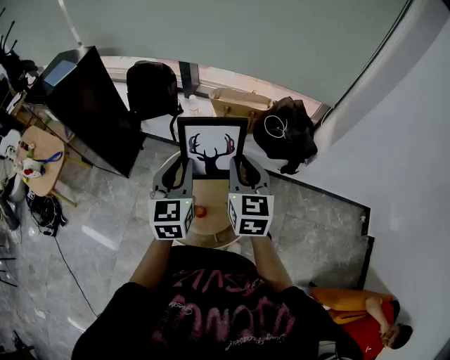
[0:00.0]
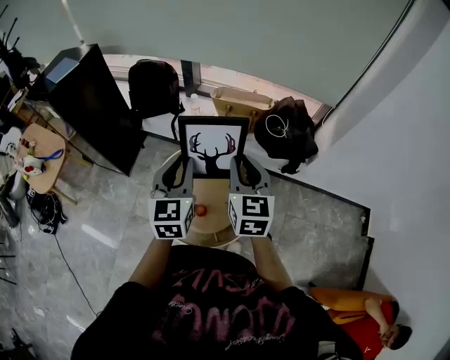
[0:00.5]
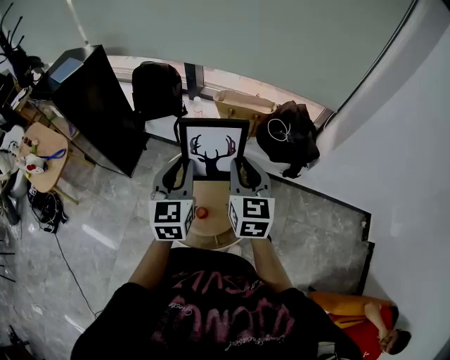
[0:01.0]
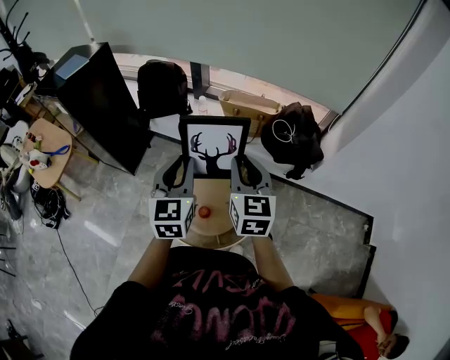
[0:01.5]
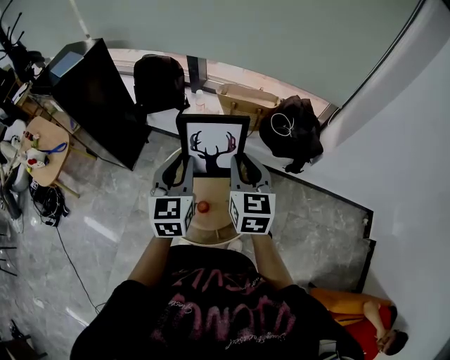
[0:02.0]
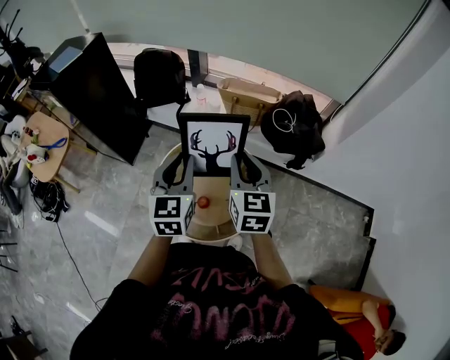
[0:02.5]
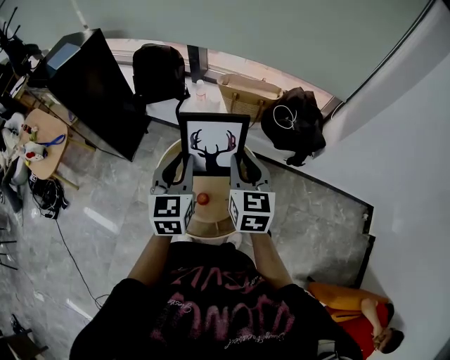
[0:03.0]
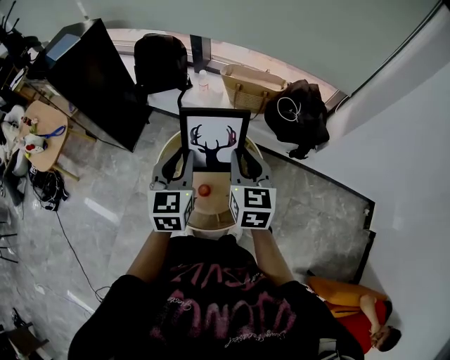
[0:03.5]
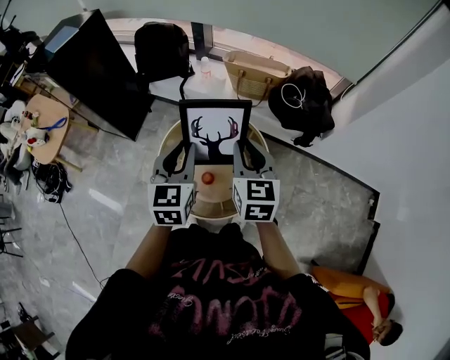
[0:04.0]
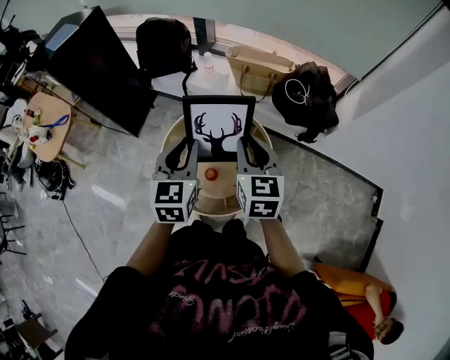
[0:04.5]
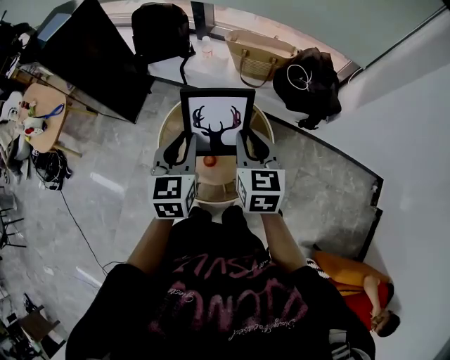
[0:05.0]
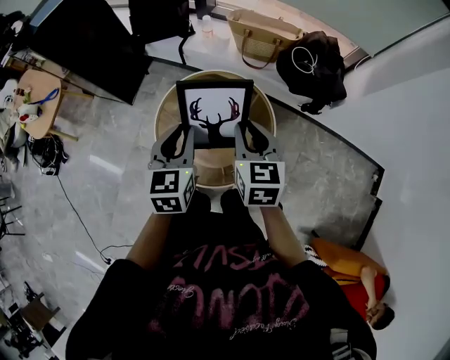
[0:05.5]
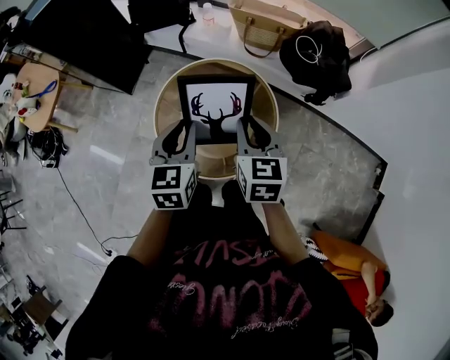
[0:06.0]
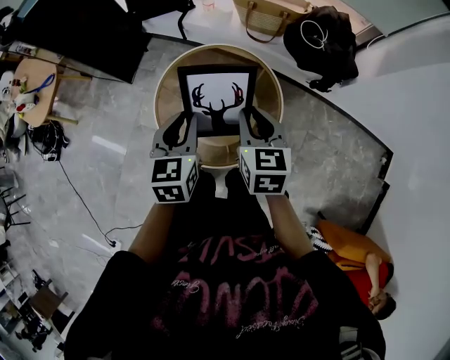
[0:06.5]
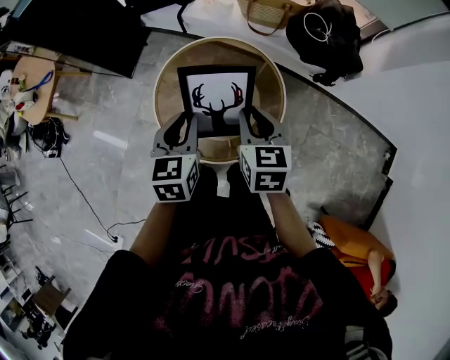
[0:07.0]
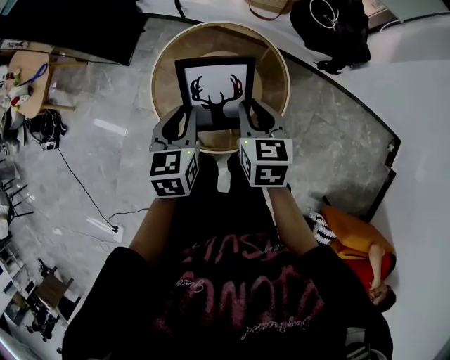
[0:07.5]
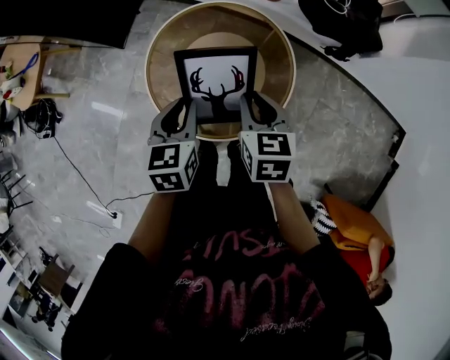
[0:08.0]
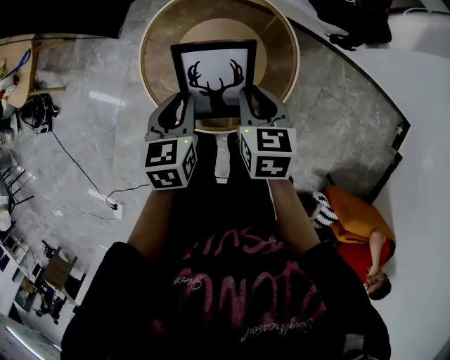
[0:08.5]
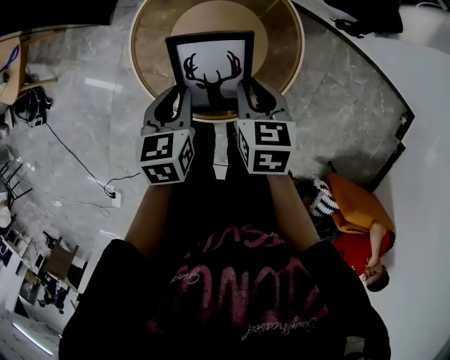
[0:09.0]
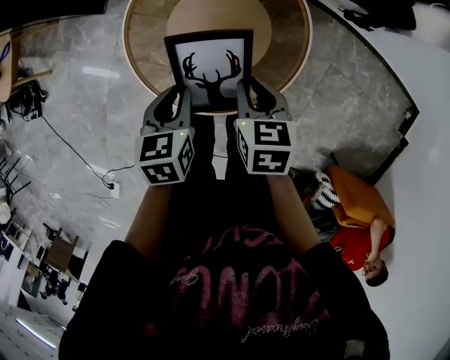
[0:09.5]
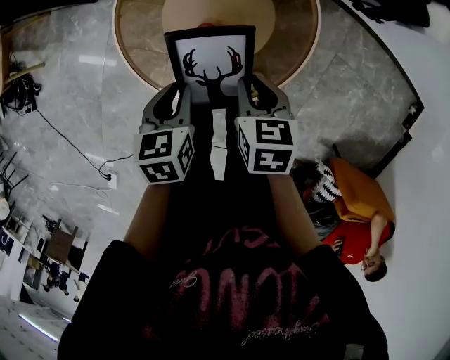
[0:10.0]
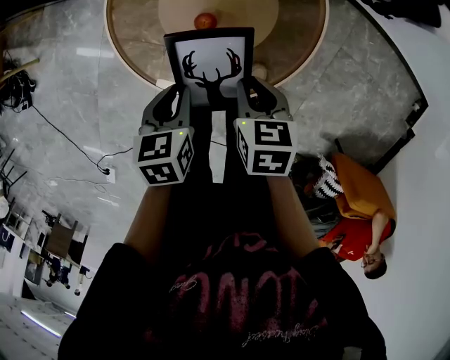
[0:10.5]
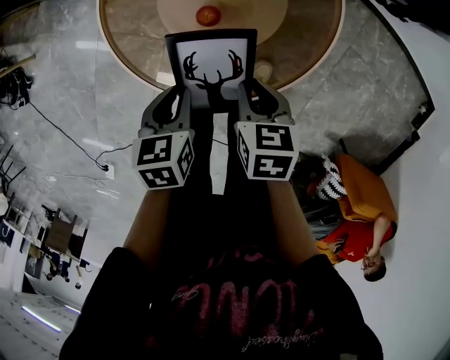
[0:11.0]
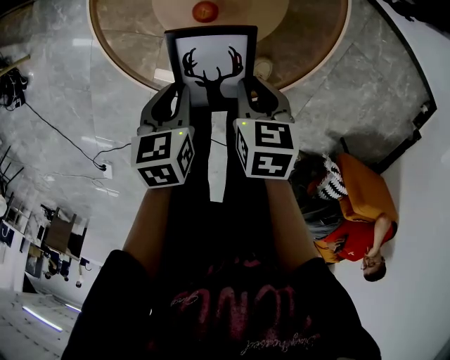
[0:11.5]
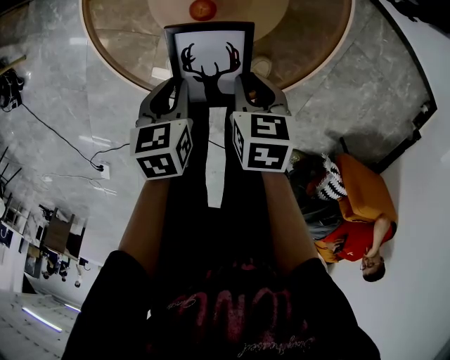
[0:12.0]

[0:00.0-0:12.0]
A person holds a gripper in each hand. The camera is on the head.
0:00.0 to 0:02.0: The grippers stay close to where they were, moving slightly.
0:02.0 to 0:04.0: The right gripper ends up roughly 5 cm from where it was. The left gripper ends up roughly 5 cm from where it was.
0:04.0 to 0:06.0: Both grippers move downward, roughly 10 cm.
0:06.0 to 0:08.0: The two grippers go approximately 15 cm downward.
0:08.0 to 0:10.0: Both grippers travel together downward, approximately 15 cm.
0:10.0 to 0:12.0: Both grippers travel together downward, roughly 15 cm.

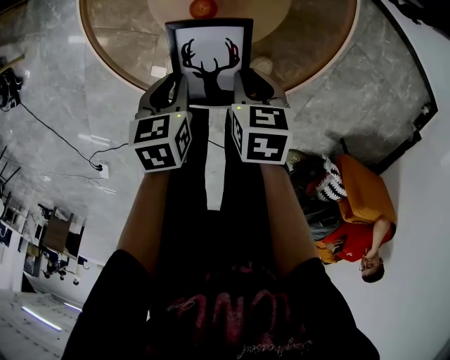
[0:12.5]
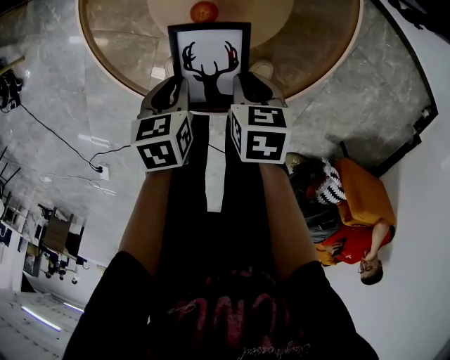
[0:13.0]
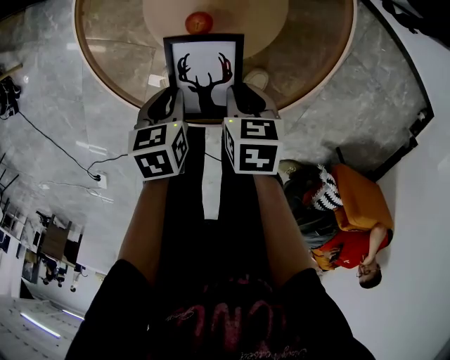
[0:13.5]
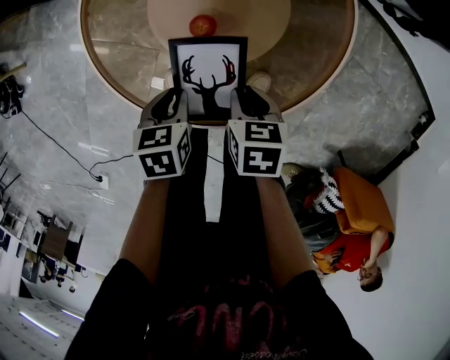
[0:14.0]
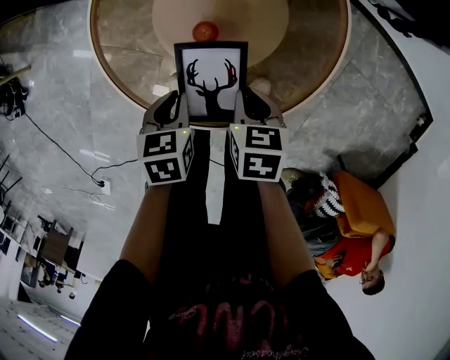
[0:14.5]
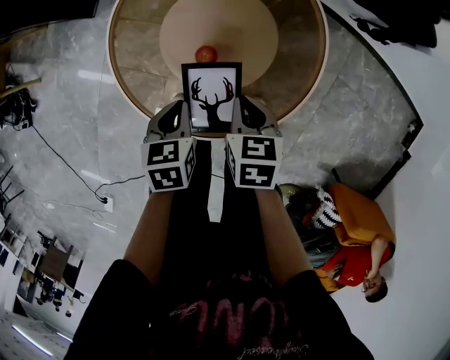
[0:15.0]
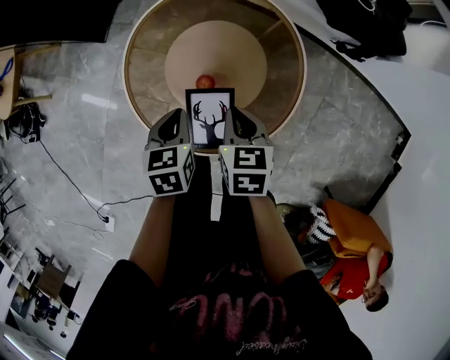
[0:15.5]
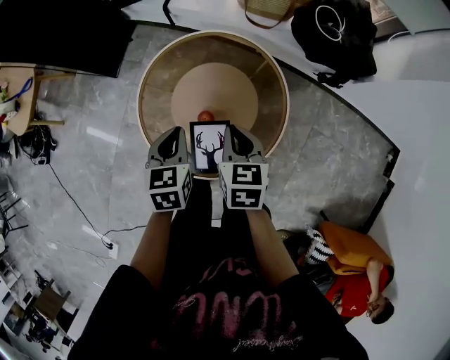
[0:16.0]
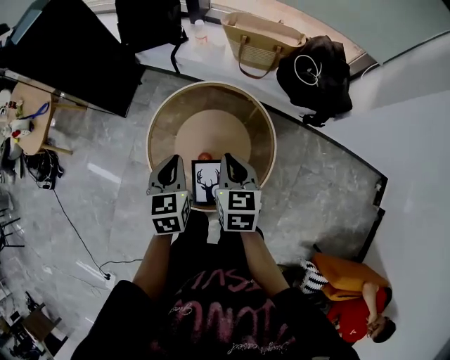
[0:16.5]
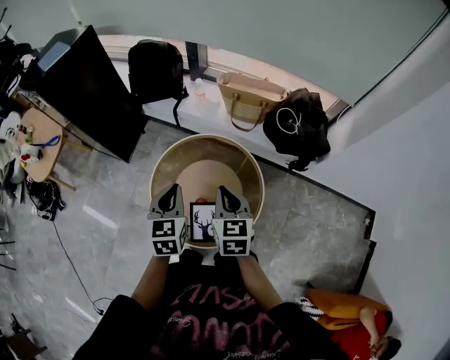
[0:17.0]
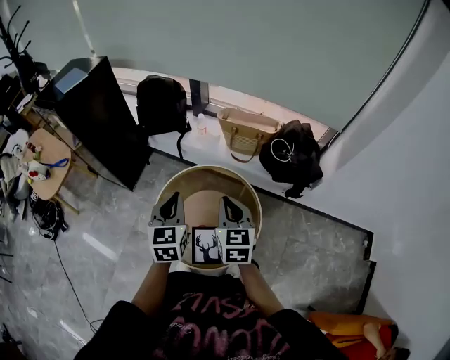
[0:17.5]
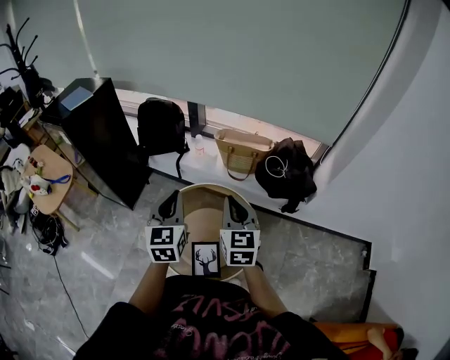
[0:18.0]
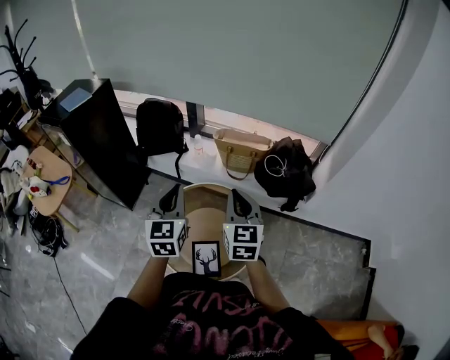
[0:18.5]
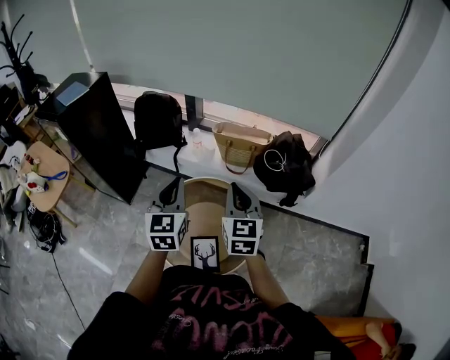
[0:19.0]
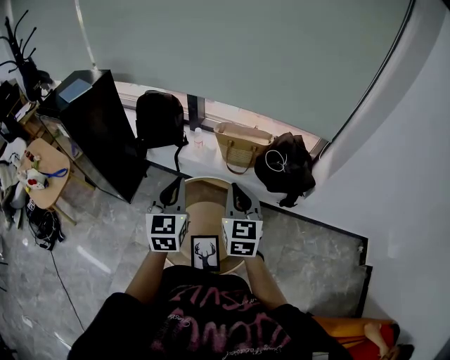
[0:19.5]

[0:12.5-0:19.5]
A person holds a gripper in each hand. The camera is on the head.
0:12.5 to 0:14.5: The grippers make only small movements.
0:14.5 to 0:16.0: Both grippers travel together upward and forward, about 25 cm. The left gripper changes its angle by some 20 degrees. The right gripper swivels roughly 20 degrees.
0:16.0 to 0:17.5: The two grippers go approximately 25 cm upward. The left gripper changes its angle by roughly 30 degrees. The right gripper turns by some 20 degrees.
0:17.5 to 0:19.5: Both grippers move upward, approximately 10 cm.

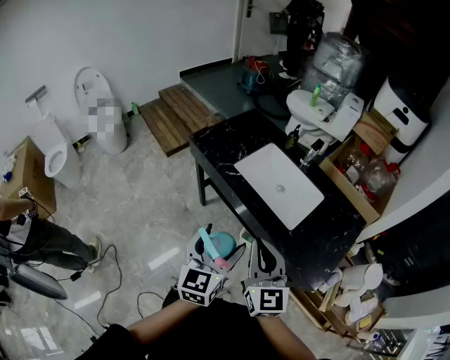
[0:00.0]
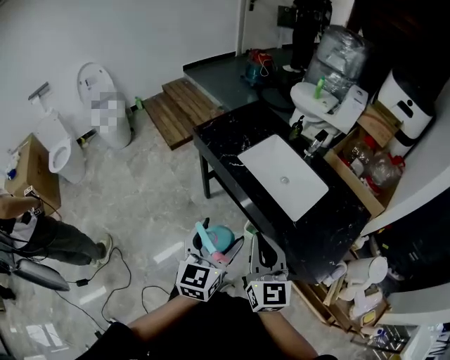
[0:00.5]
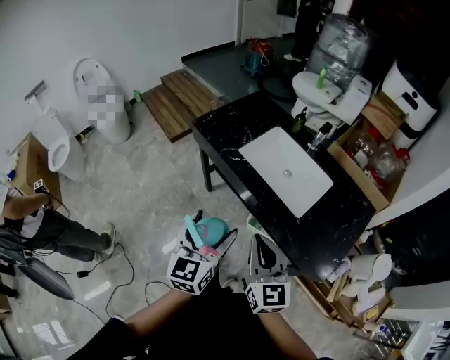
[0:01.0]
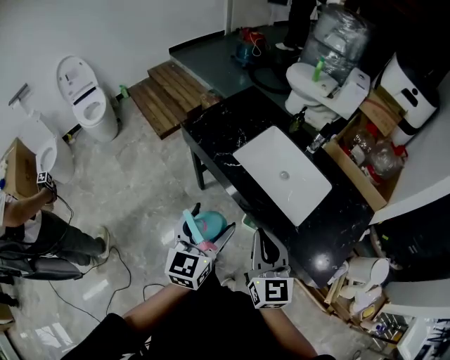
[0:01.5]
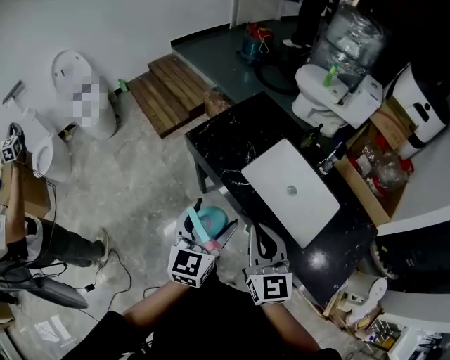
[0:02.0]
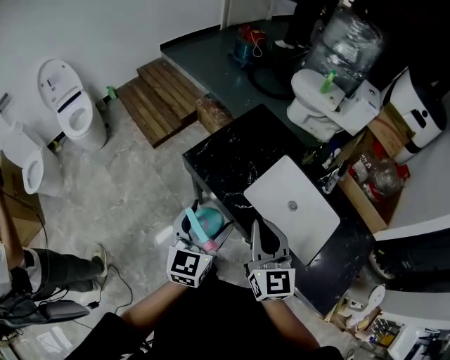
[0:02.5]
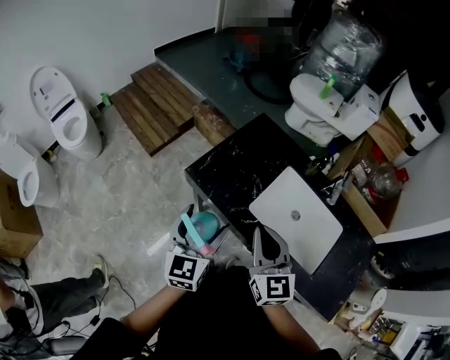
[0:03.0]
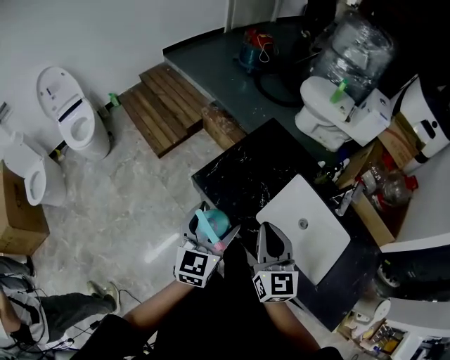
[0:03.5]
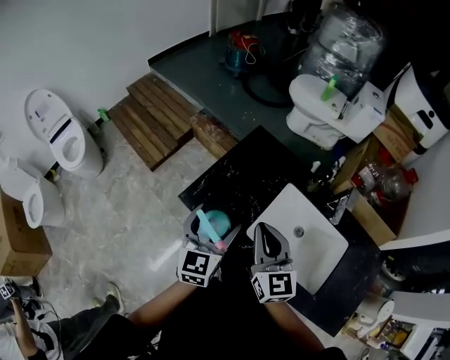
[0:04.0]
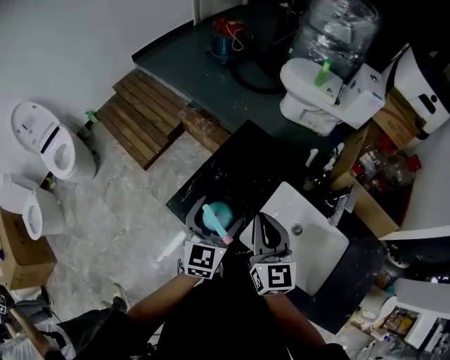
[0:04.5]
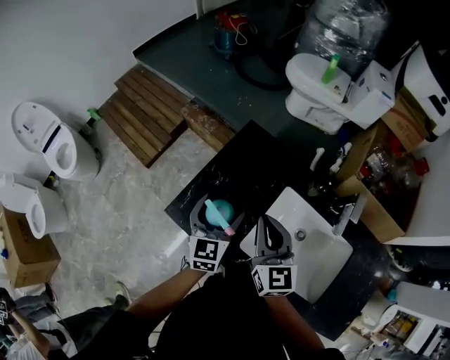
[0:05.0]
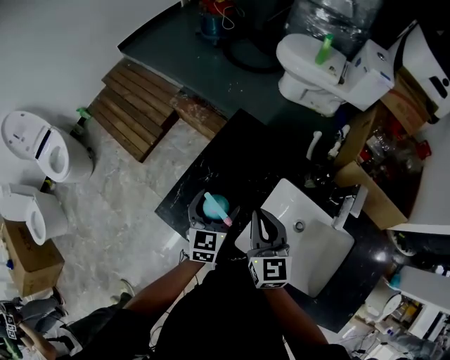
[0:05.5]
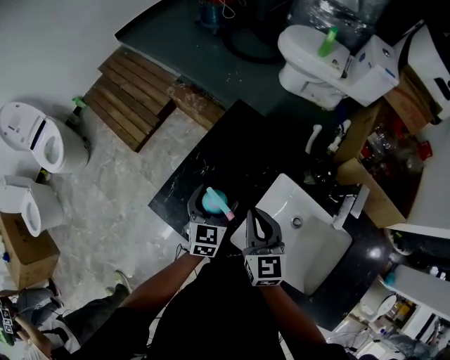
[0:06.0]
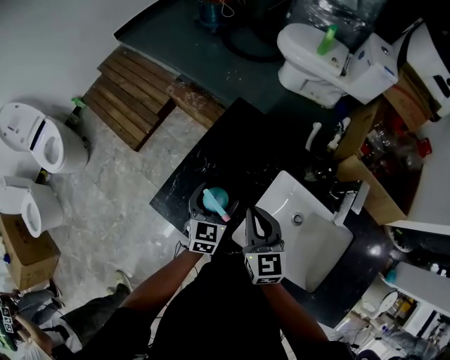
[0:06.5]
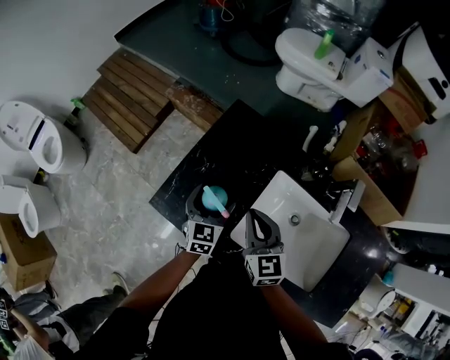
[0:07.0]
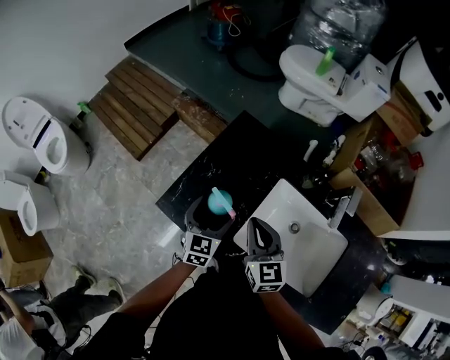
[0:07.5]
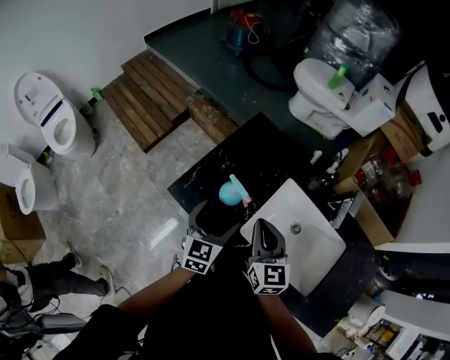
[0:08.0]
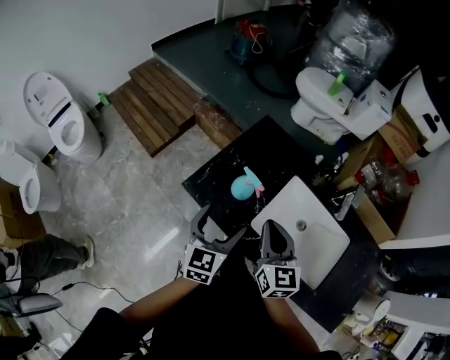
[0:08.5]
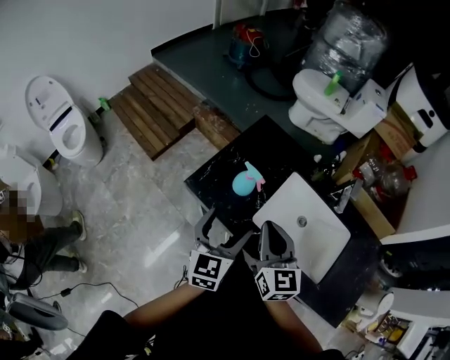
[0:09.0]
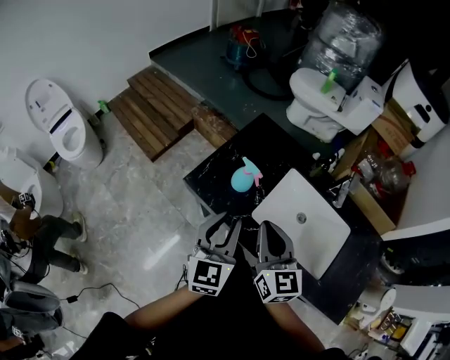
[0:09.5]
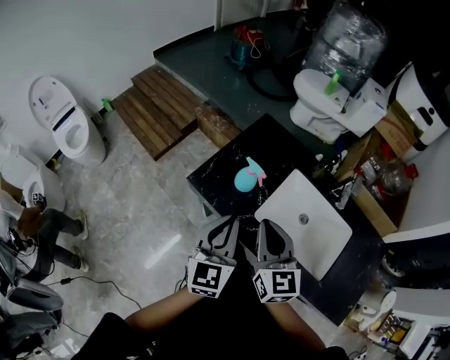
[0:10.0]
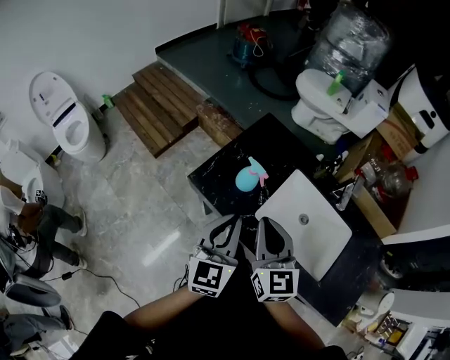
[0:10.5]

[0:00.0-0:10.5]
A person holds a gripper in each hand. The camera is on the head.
0:00.0 to 0:02.0: The left gripper is displaced forward and to the left by roughly 25 cm. The right gripper goes some 20 cm forward.
0:02.0 to 0:04.0: Both grippers move forward, roughly 25 cm.
0:04.0 to 0:06.5: Both grippers move downward and forward, about 20 cm.
0:06.5 to 0:08.5: The grippers both shift backward and upward by some 20 cm.
0:08.5 to 0:10.5: The left gripper shifts about 10 cm upward and backward, and closes up. Meanwhile the right gripper moves upward, approximately 5 cm.
